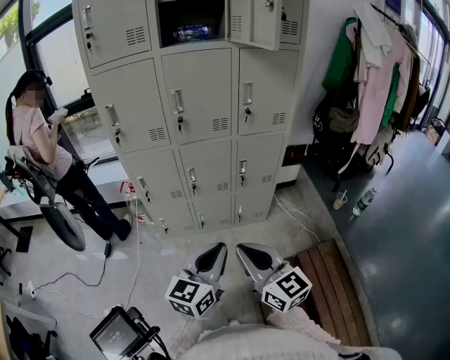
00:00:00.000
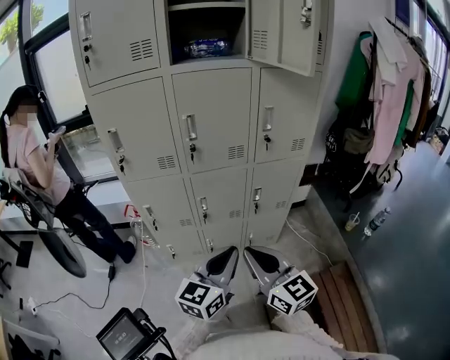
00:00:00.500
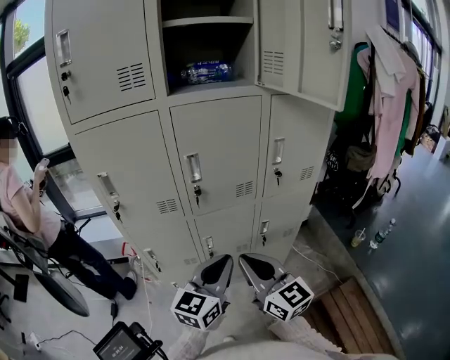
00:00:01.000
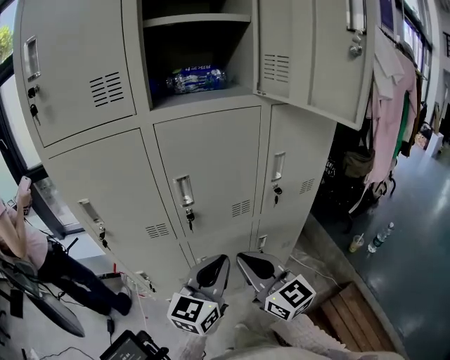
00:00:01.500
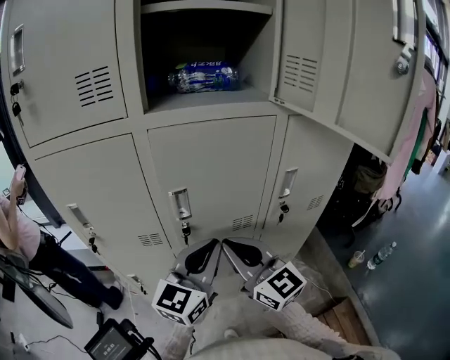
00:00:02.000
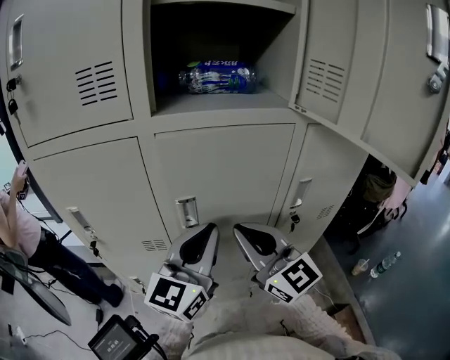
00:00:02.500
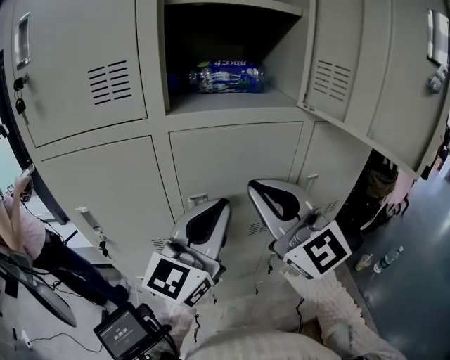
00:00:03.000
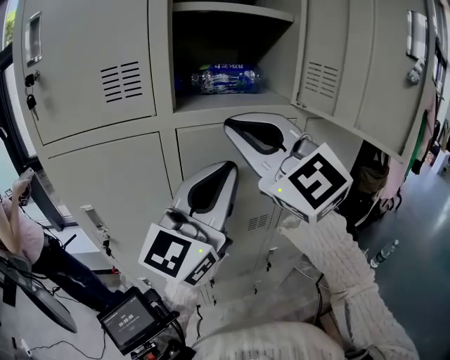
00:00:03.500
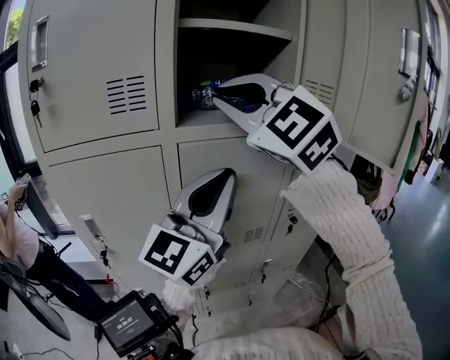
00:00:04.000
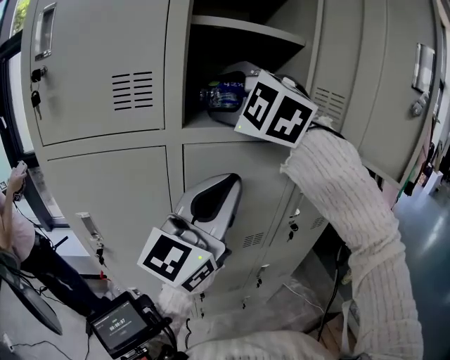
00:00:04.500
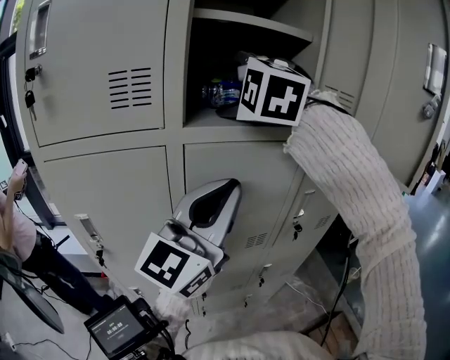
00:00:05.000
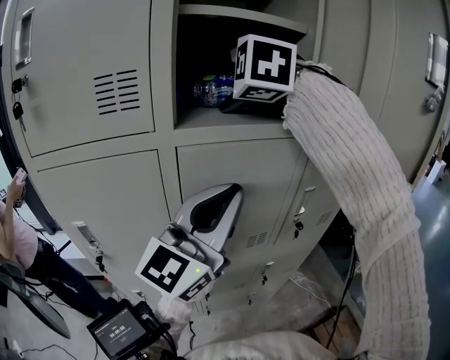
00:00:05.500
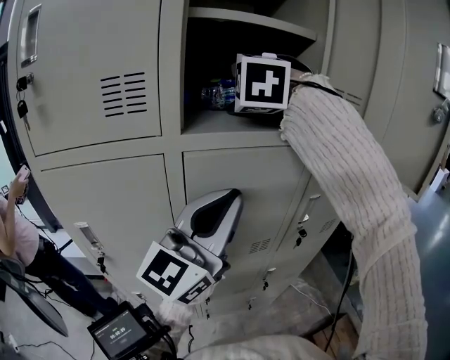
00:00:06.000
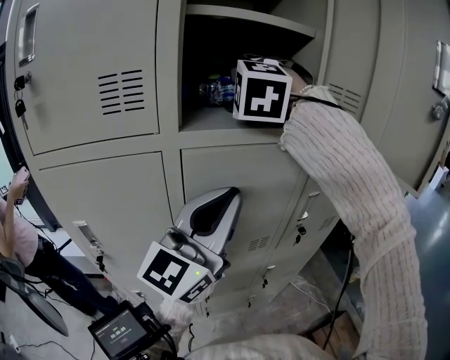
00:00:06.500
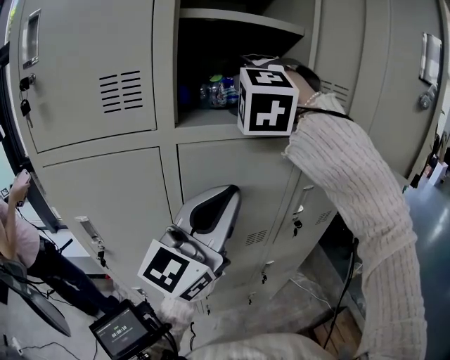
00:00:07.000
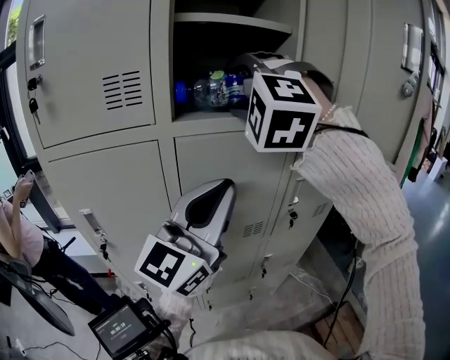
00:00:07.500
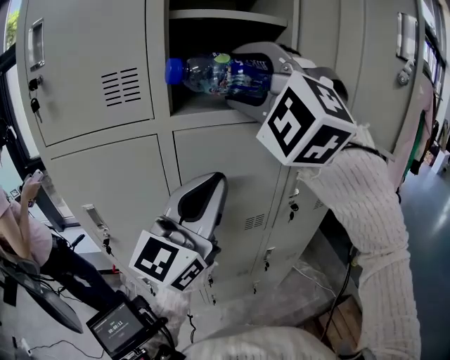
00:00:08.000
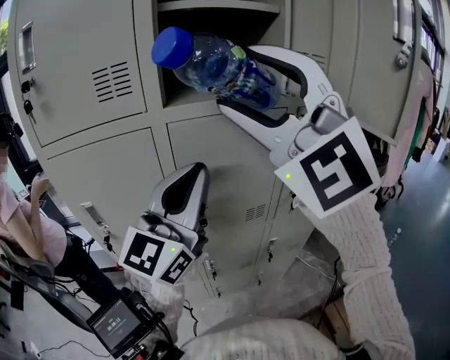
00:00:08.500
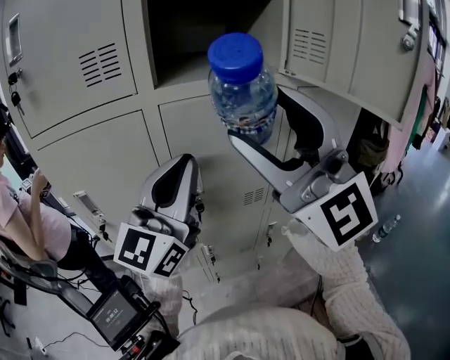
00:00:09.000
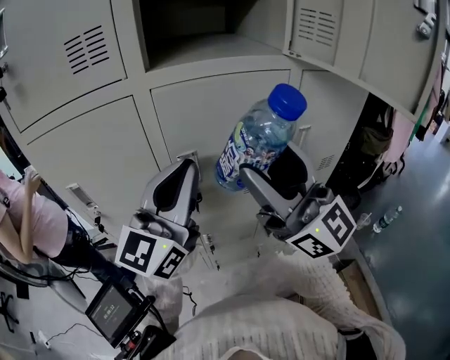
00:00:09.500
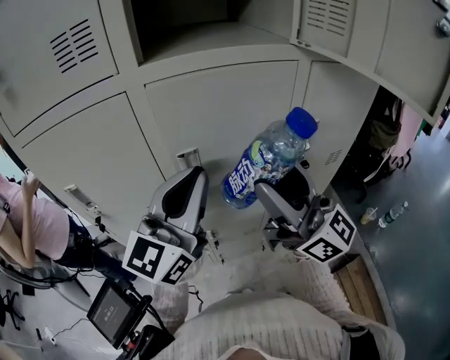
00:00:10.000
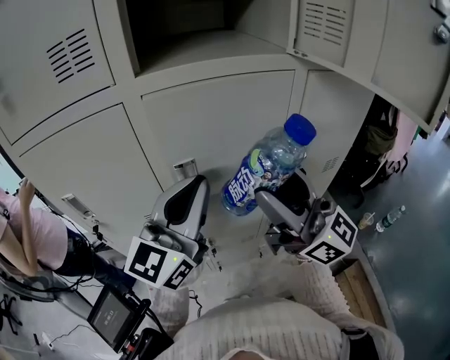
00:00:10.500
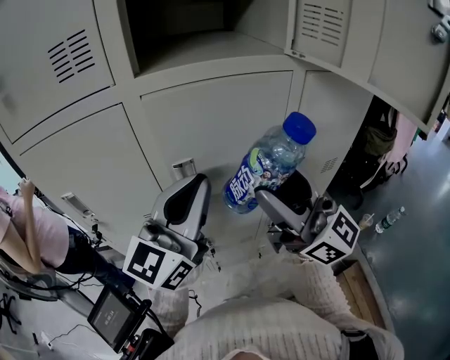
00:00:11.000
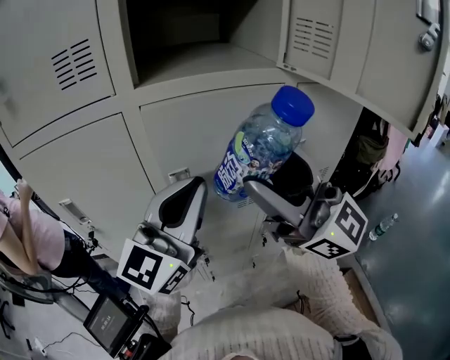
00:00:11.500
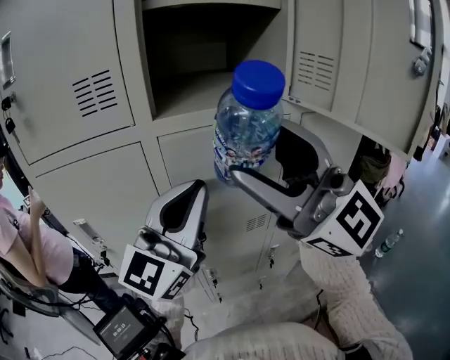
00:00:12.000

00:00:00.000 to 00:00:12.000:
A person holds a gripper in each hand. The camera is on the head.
00:00:00.000 to 00:00:02.000: The two grippers travel together, forward, roughly 40 cm.
00:00:02.000 to 00:00:04.000: The left gripper goes roughly 20 cm upward, and swivels approximately 30 degrees; the right gripper heads upward, covering roughly 30 cm, and rotates around the line of its fingers by about 50 degrees, counterclockwise from behind.
00:00:04.000 to 00:00:06.000: The right gripper is displaced forward by approximately 15 cm, tilts its fingers approximately 30 degrees downward, and opens up.
00:00:06.000 to 00:00:08.000: The right gripper shifts some 15 cm backward and to the right, and changes its angle by approximately 30 degrees.
00:00:08.000 to 00:00:10.000: The left gripper is displaced downward by roughly 10 cm. Meanwhile the right gripper goes some 20 cm downward, and rotates around the line of its fingers by some 100 degrees, clockwise from behind.
00:00:10.000 to 00:00:12.000: The right gripper moves upward, about 15 cm, and swivels approximately 40 degrees. Meanwhile the left gripper moves upward, roughly 10 cm.

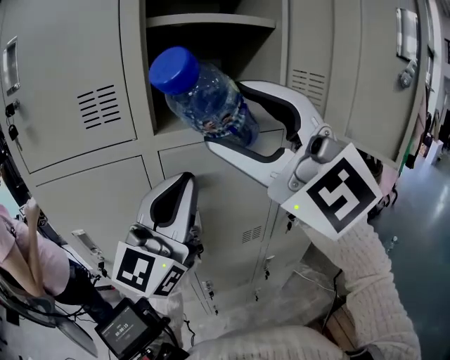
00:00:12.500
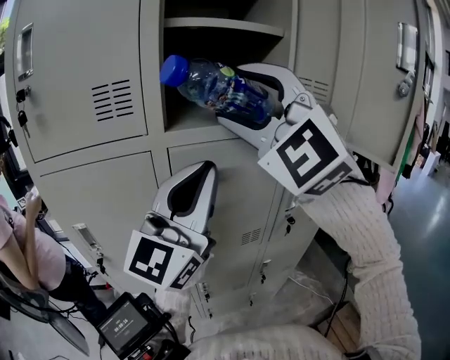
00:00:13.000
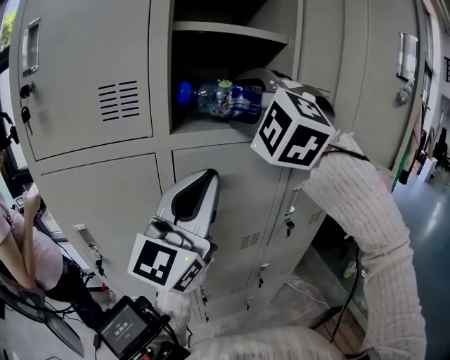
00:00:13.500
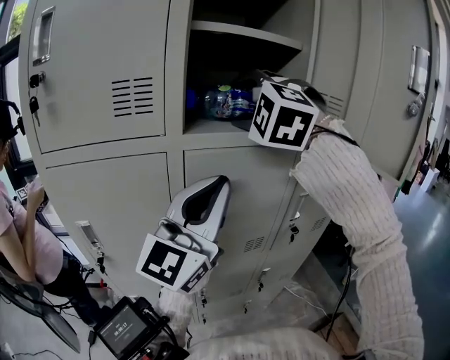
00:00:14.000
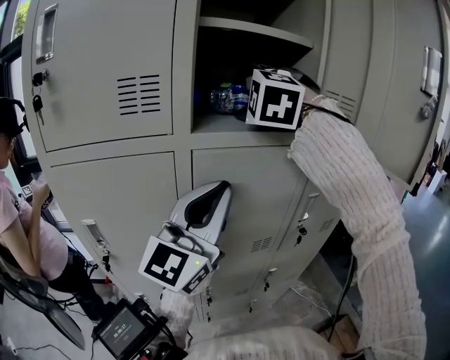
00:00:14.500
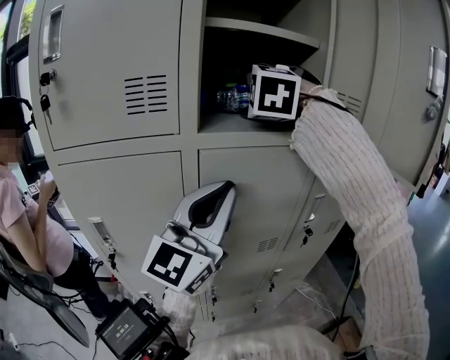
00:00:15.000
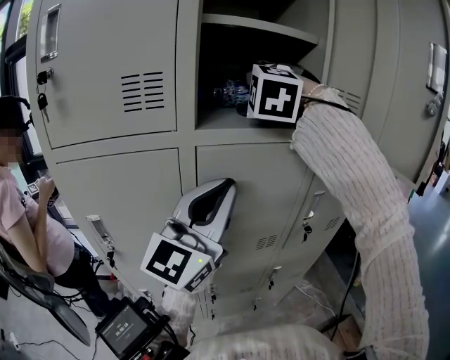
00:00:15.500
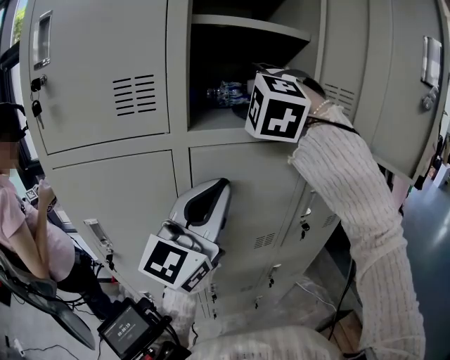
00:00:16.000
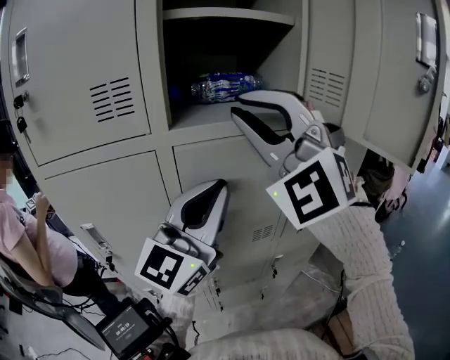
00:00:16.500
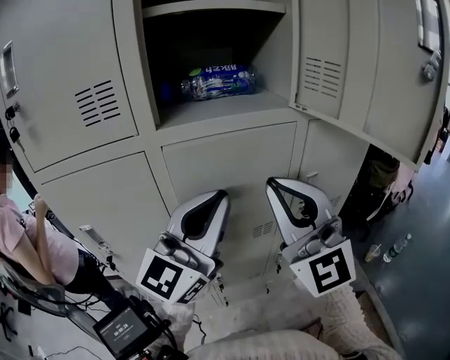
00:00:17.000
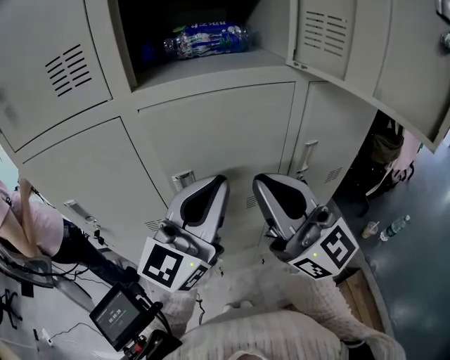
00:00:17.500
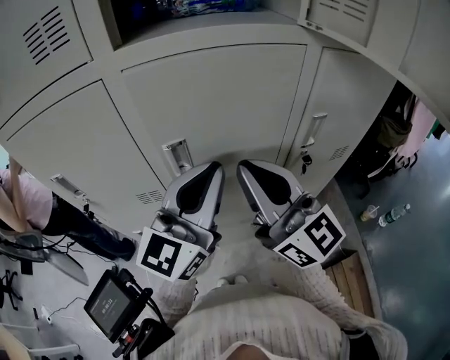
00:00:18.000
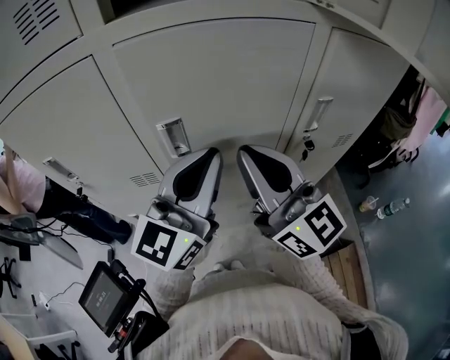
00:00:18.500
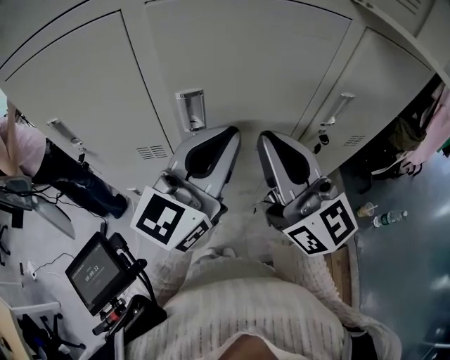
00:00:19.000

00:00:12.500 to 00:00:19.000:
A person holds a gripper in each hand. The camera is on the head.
00:00:12.500 to 00:00:14.500: The right gripper is displaced forward by some 20 cm, and tilts its fingers about 40 degrees downward.
00:00:14.500 to 00:00:17.000: The right gripper moves backward, to the right and downward, approximately 25 cm, tips its fingers upward by roughly 50 degrees, and closes.
00:00:17.000 to 00:00:19.000: The two grippers go approximately 10 cm downward. The right gripper twists roughly 40 degrees clockwise, seen from behind.

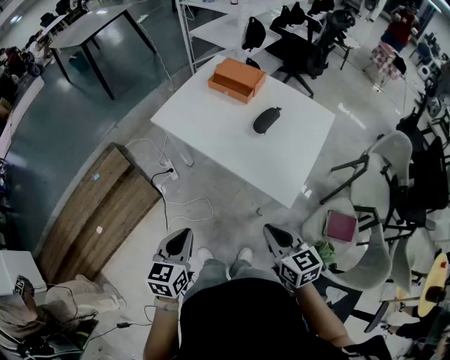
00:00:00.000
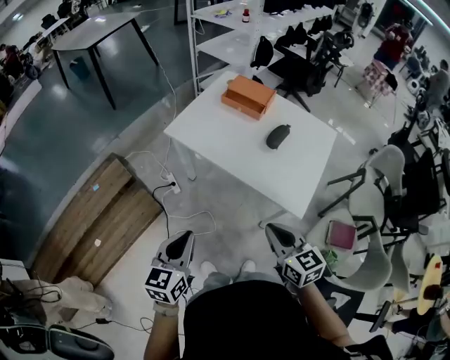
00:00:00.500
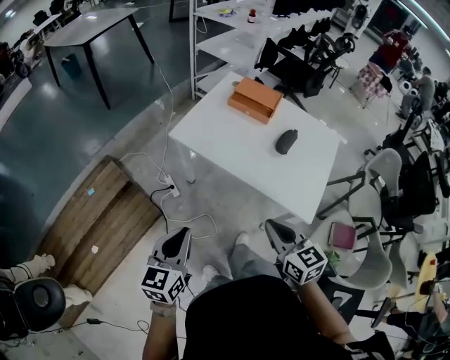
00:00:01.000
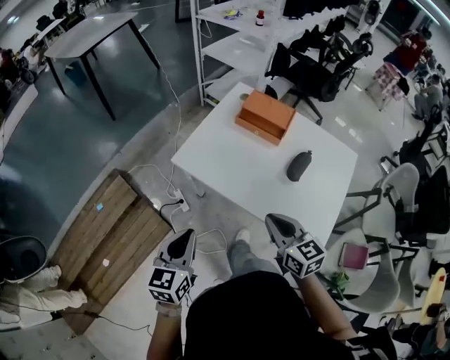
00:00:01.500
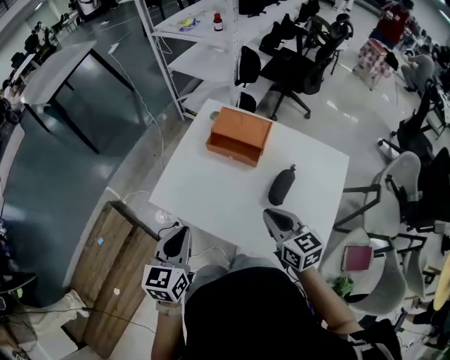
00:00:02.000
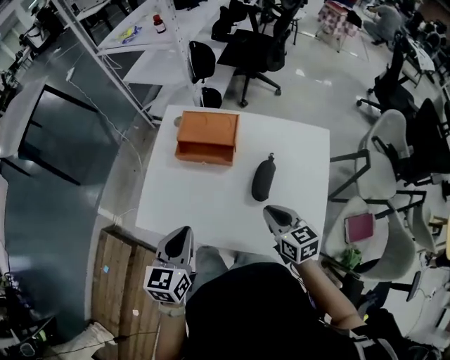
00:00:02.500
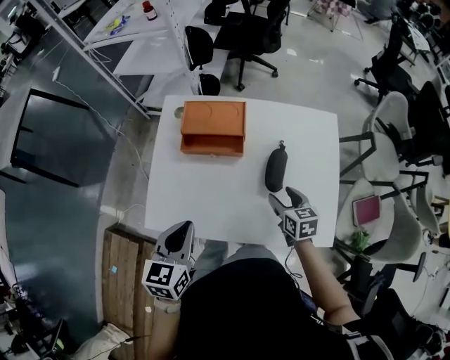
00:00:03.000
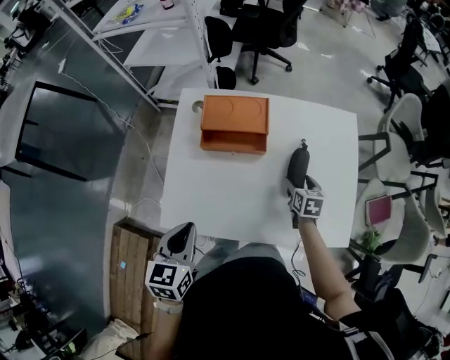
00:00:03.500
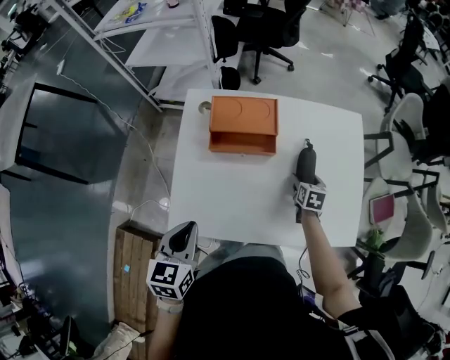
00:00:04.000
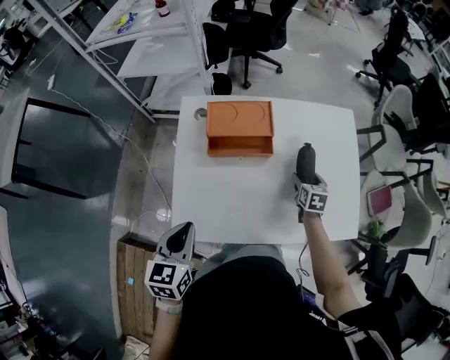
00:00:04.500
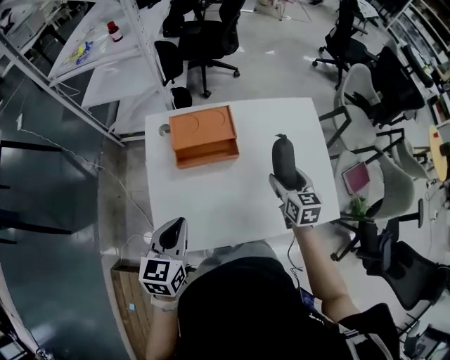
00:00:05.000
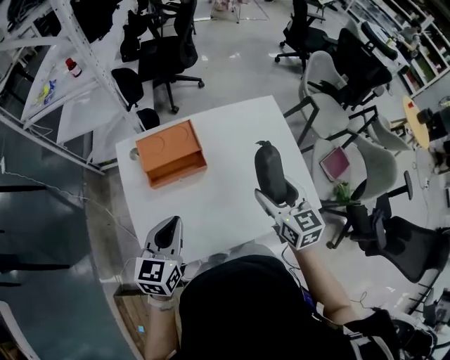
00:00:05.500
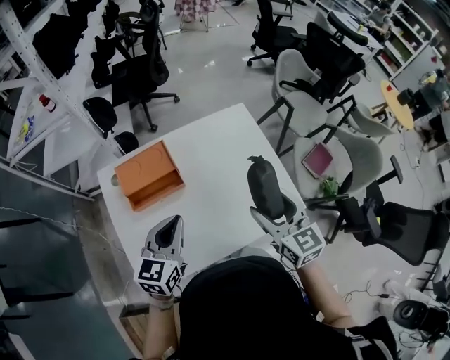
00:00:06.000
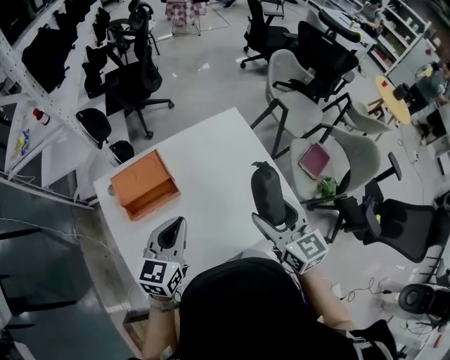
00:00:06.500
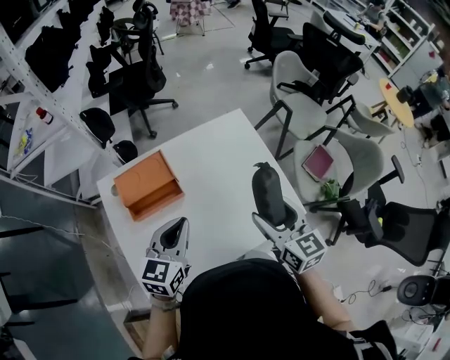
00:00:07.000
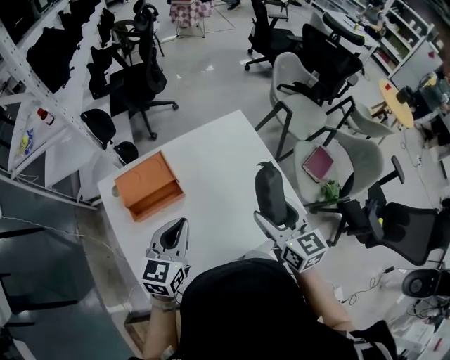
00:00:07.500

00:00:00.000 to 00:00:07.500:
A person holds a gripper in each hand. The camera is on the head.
00:00:00.000 to 00:00:02.000: Both grippers move forward, about 40 cm.
00:00:02.000 to 00:00:04.000: The left gripper moves about 15 cm, and rotates roughly 30 degrees. The right gripper heads downward, covering approximately 25 cm, points its fingers roughly 30 degrees further downward, and opens up.
00:00:04.000 to 00:00:05.500: The left gripper travels forward and to the right by roughly 10 cm, and rotates about 30 degrees. Meanwhile the right gripper goes some 25 cm upward, and angles its fingers upward, by about 30 degrees.
00:00:05.500 to 00:00:07.500: The left gripper goes about 15 cm to the right and forward, while the right gripper heads to the right, covering about 10 cm.
